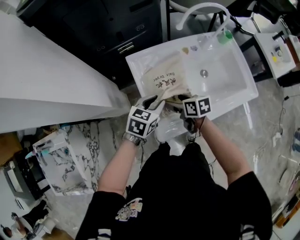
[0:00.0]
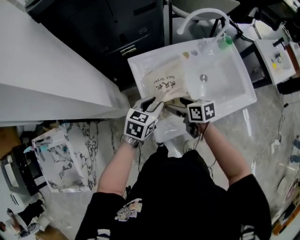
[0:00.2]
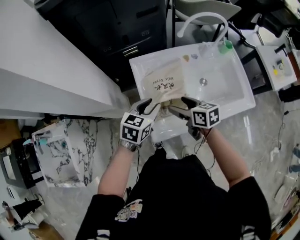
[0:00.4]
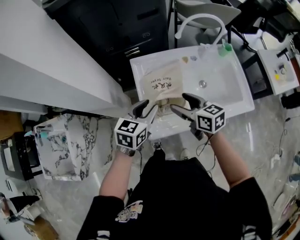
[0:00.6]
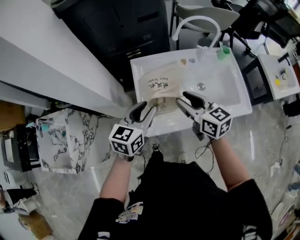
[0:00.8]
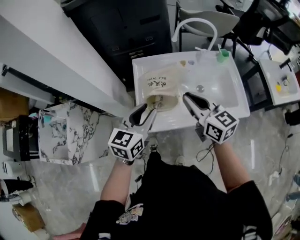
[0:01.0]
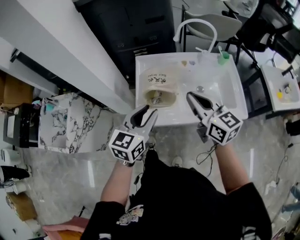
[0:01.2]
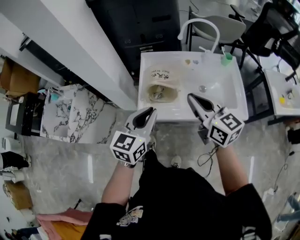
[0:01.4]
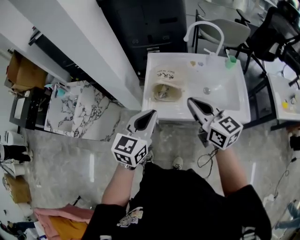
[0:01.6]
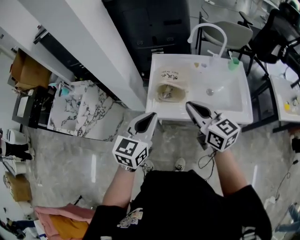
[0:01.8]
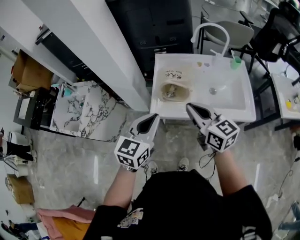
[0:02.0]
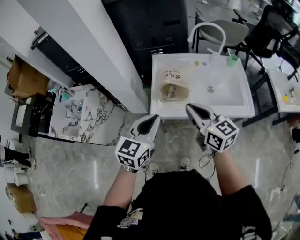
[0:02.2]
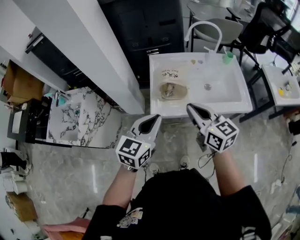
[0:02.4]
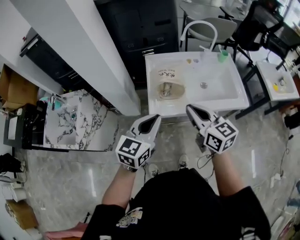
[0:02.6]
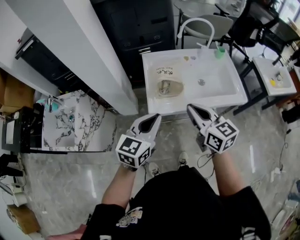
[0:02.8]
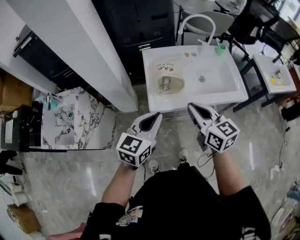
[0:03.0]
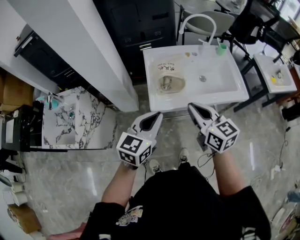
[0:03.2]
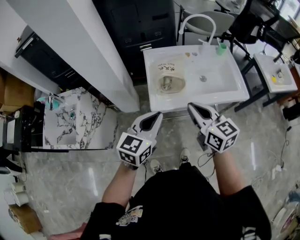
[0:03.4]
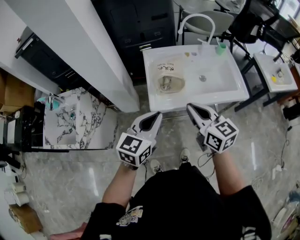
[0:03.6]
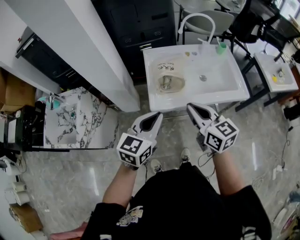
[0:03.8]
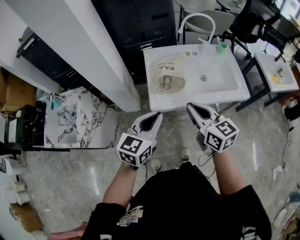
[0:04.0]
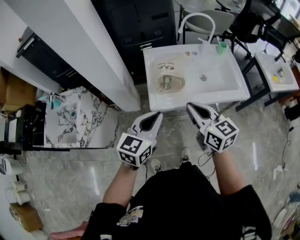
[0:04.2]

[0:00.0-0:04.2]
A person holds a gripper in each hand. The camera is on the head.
0:00.0 to 0:01.4: The right gripper heads upward, backward and to the right, covering roughly 35 cm, angles its fingers upward, by roughly 40 degrees, and closes up, while the left gripper goes about 30 cm backward and upward, and rotates approximately 40 degrees.
0:01.4 to 0:02.8: Both grippers travel together to the left and backward, about 10 cm.
0:02.8 to 0:04.2: There are only small adjustments of the grippers.

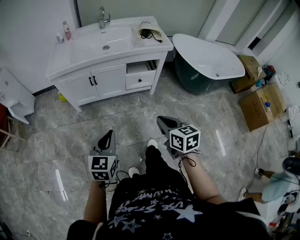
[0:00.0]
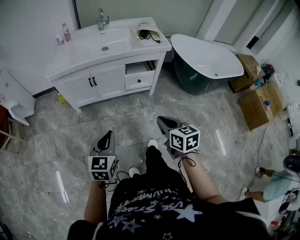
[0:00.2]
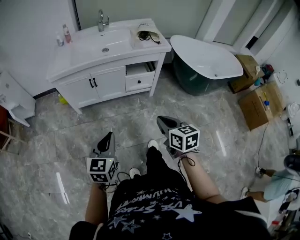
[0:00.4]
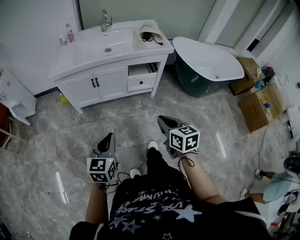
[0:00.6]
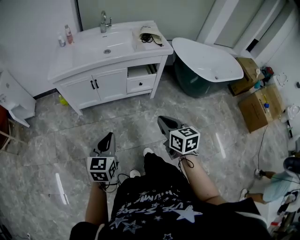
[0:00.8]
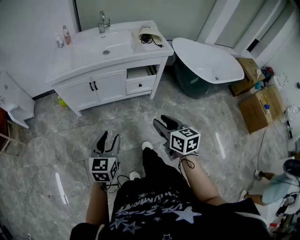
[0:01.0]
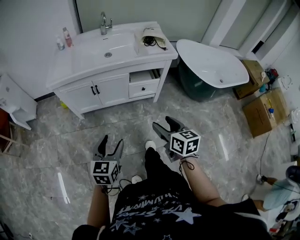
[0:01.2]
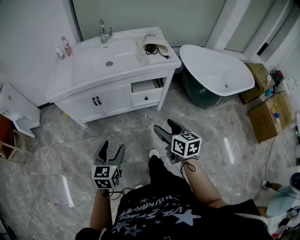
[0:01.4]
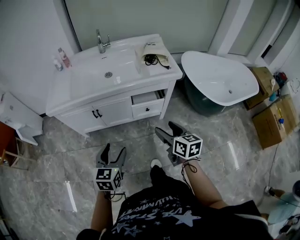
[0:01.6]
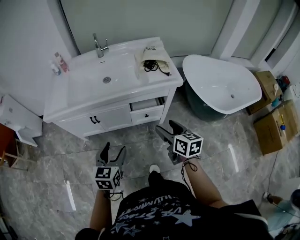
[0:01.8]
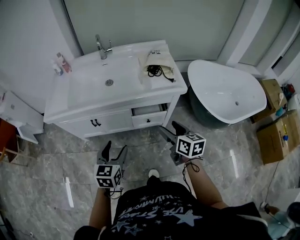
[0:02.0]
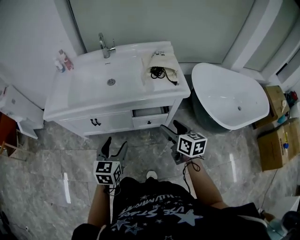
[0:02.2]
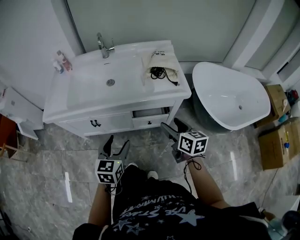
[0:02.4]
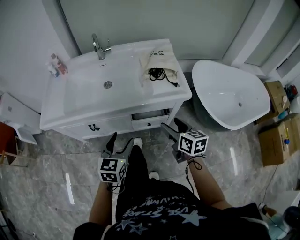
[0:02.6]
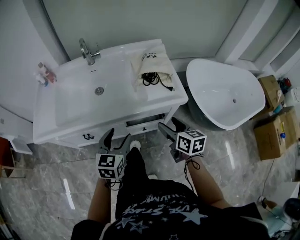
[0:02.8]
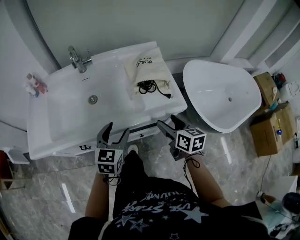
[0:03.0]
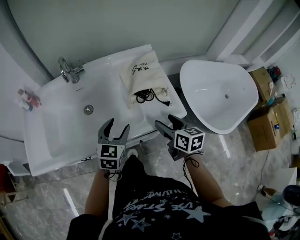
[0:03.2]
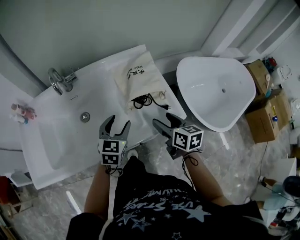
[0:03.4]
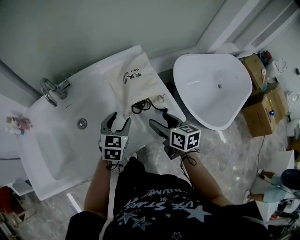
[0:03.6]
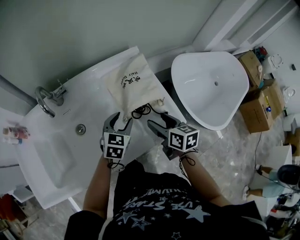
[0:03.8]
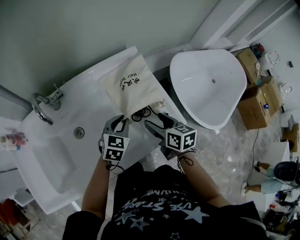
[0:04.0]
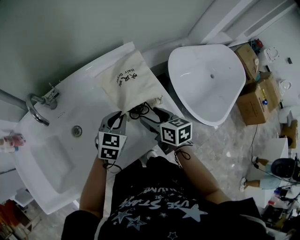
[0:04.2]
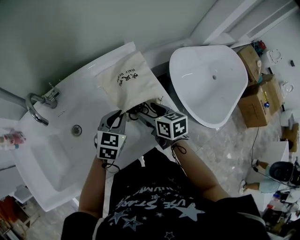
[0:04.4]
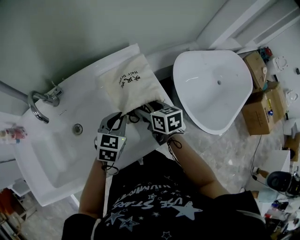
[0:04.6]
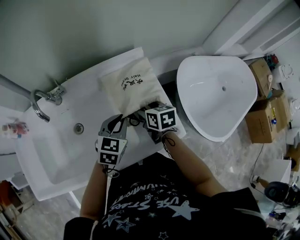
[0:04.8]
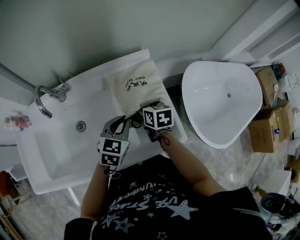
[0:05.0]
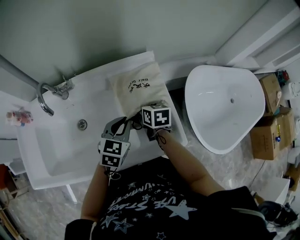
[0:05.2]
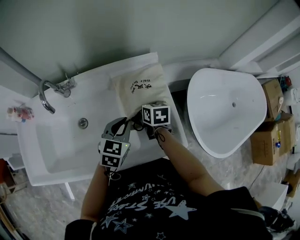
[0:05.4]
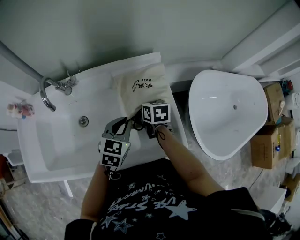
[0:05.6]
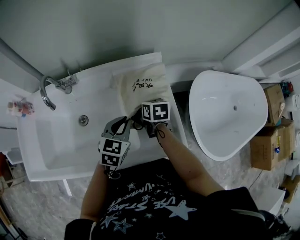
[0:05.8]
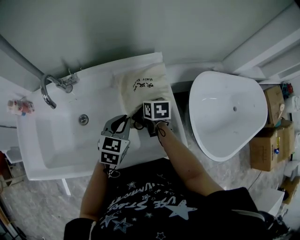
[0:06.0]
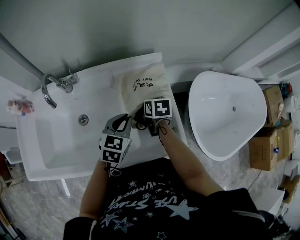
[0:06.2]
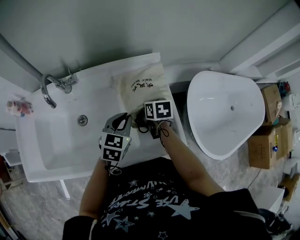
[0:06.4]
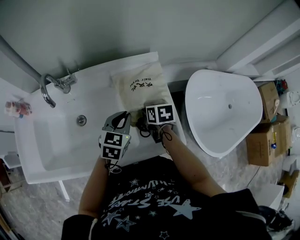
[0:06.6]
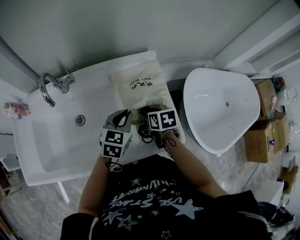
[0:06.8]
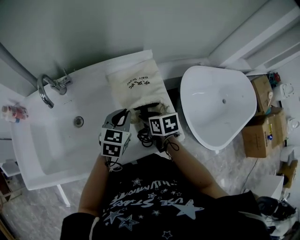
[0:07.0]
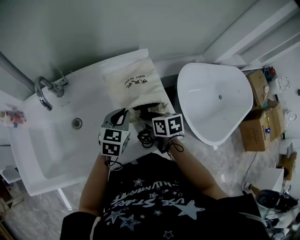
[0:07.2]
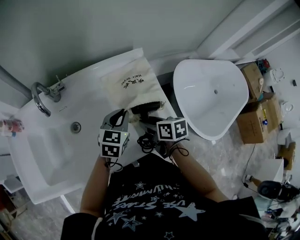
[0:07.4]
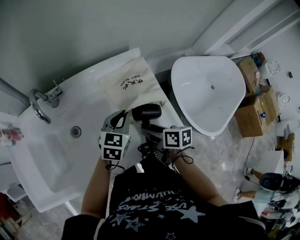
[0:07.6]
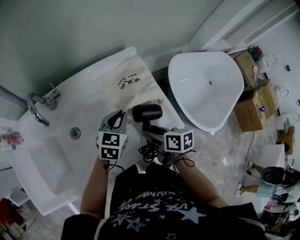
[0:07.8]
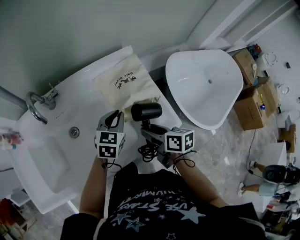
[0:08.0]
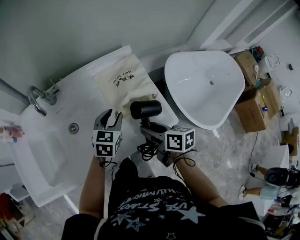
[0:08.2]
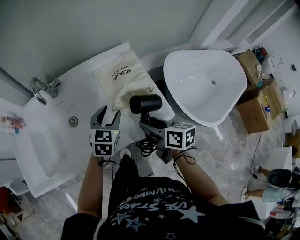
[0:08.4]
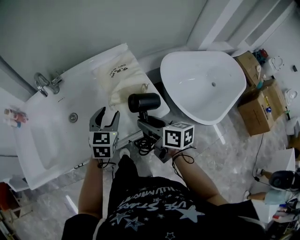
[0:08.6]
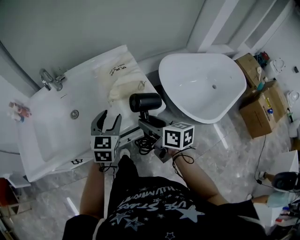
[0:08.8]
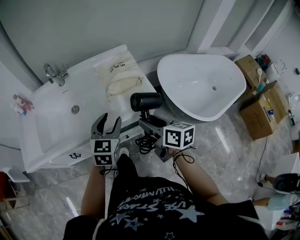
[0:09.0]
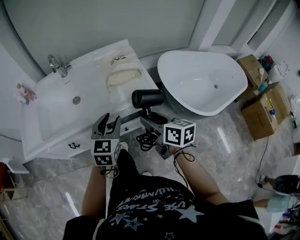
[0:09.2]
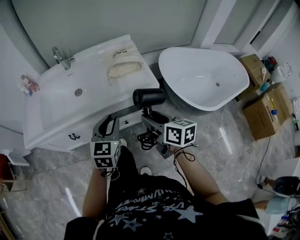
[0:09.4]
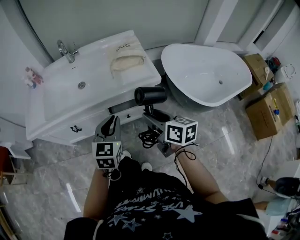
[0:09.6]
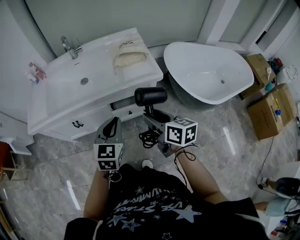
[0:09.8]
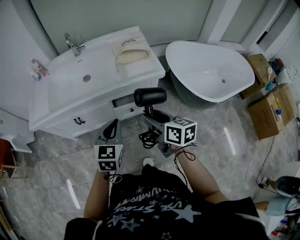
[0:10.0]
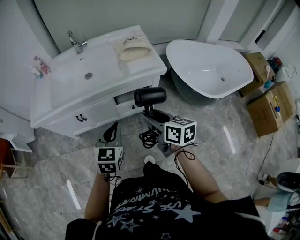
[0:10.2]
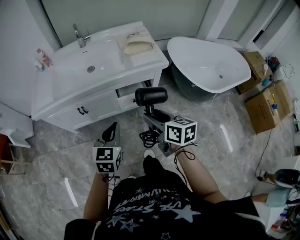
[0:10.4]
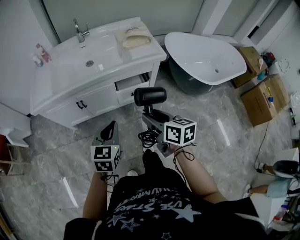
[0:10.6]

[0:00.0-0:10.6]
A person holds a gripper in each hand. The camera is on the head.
0:00.0 to 0:01.6: The grippers both shift forward by about 20 cm. The left gripper opens up. Meanwhile the right gripper opens.
0:01.6 to 0:03.0: Both grippers move forward, approximately 35 cm.
0:03.0 to 0:04.6: Both grippers move forward, approximately 25 cm. The left gripper changes its angle by roughly 20 degrees, and closes up.
0:04.6 to 0:06.0: The right gripper shifts roughly 10 cm forward and downward.
0:06.0 to 0:07.6: The right gripper heads backward, covering roughly 15 cm, and turns by roughly 20 degrees.
0:07.6 to 0:09.0: The right gripper is displaced backward and upward by roughly 20 cm, and swivels roughly 20 degrees; the left gripper heads backward, covering roughly 20 cm, and opens its fingers.
0:09.0 to 0:10.6: The two grippers go approximately 35 cm backward and to the left. The left gripper closes its fingers.

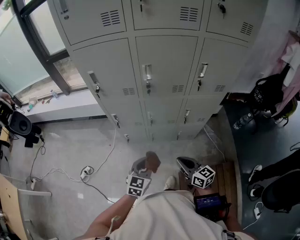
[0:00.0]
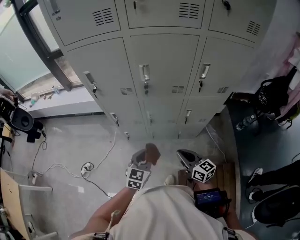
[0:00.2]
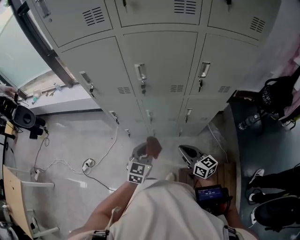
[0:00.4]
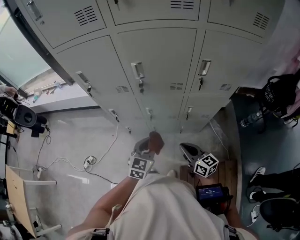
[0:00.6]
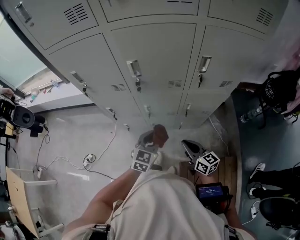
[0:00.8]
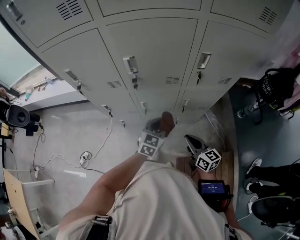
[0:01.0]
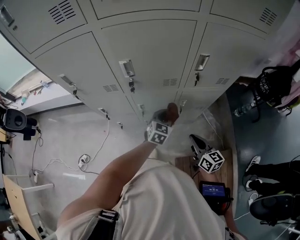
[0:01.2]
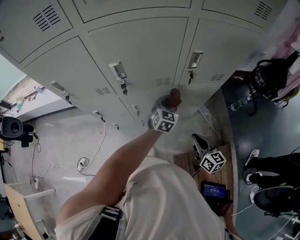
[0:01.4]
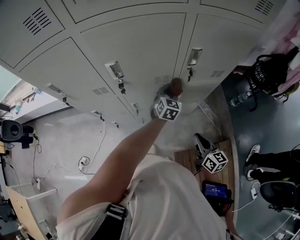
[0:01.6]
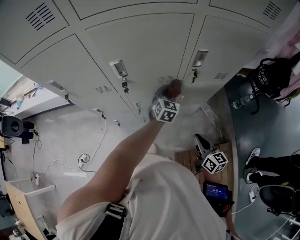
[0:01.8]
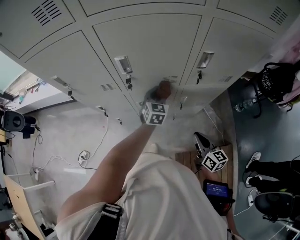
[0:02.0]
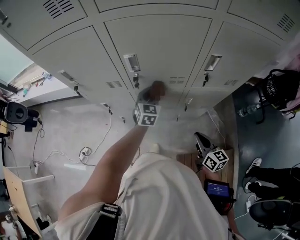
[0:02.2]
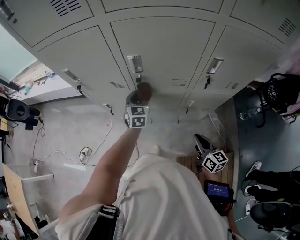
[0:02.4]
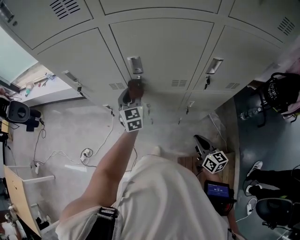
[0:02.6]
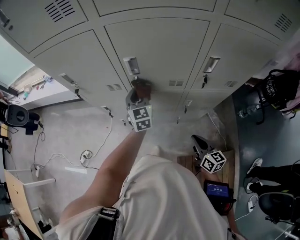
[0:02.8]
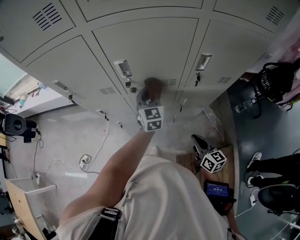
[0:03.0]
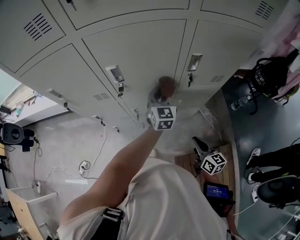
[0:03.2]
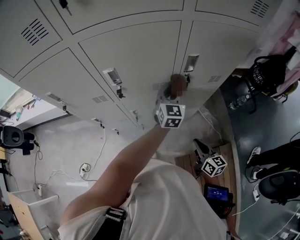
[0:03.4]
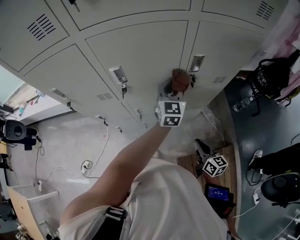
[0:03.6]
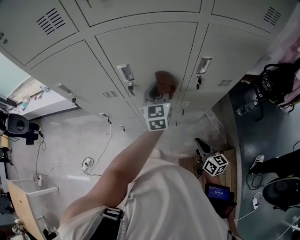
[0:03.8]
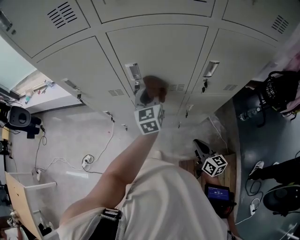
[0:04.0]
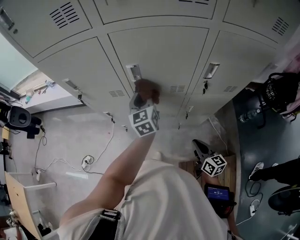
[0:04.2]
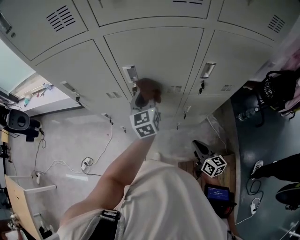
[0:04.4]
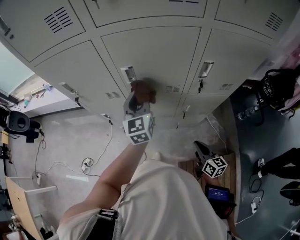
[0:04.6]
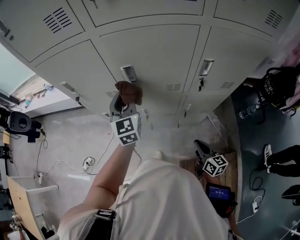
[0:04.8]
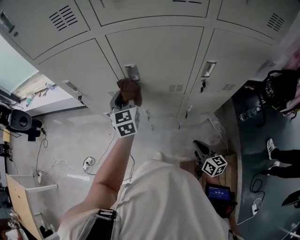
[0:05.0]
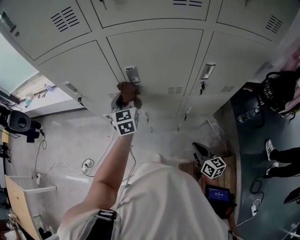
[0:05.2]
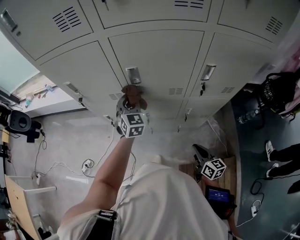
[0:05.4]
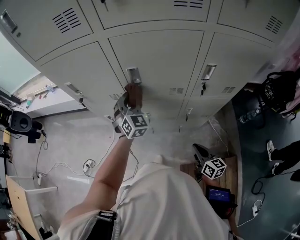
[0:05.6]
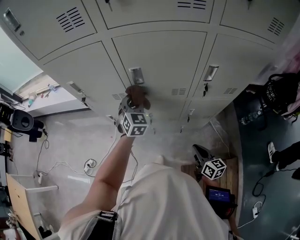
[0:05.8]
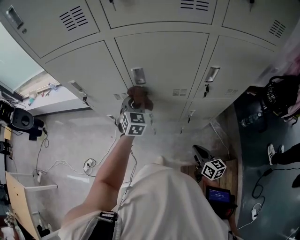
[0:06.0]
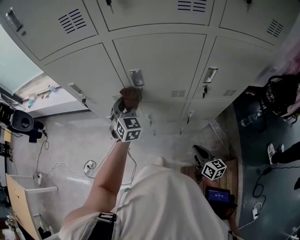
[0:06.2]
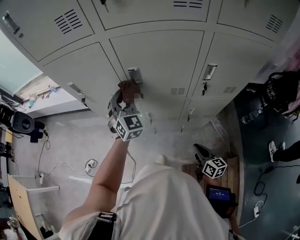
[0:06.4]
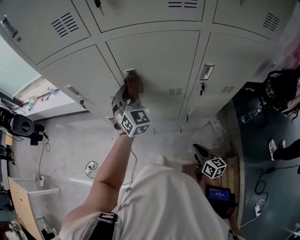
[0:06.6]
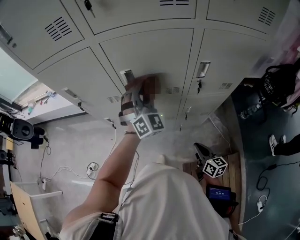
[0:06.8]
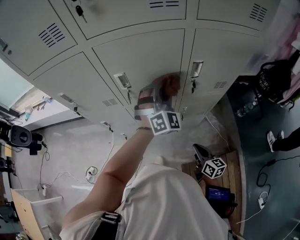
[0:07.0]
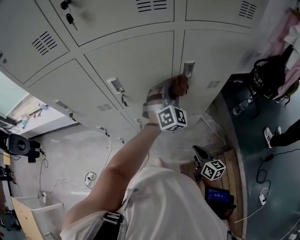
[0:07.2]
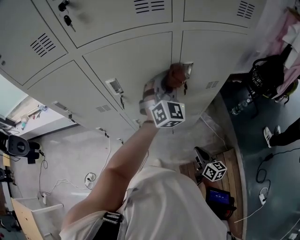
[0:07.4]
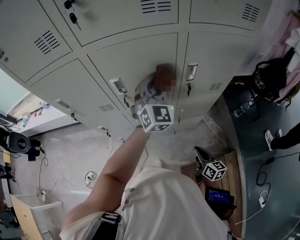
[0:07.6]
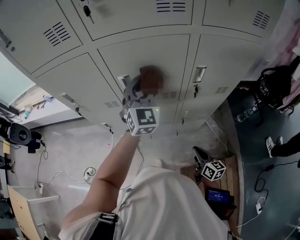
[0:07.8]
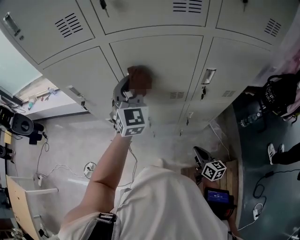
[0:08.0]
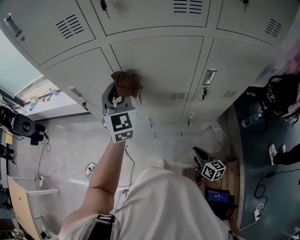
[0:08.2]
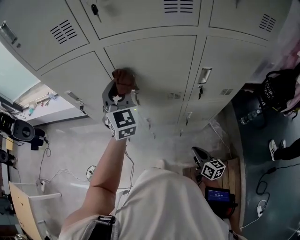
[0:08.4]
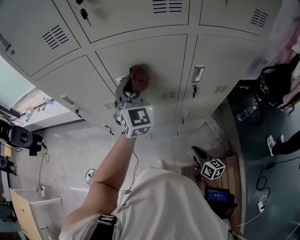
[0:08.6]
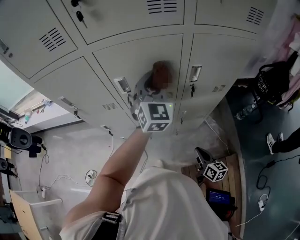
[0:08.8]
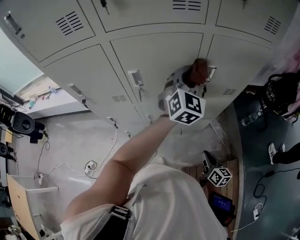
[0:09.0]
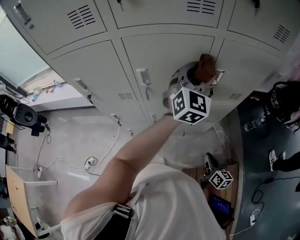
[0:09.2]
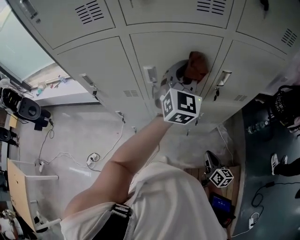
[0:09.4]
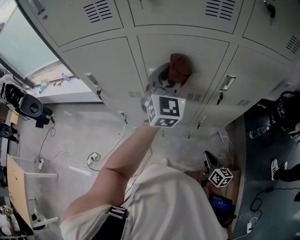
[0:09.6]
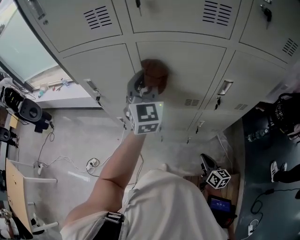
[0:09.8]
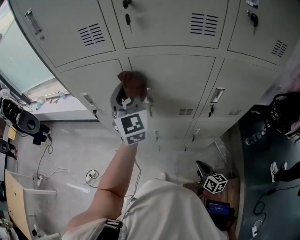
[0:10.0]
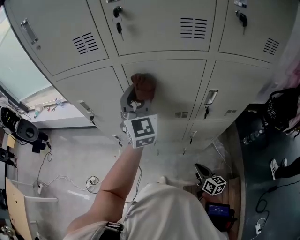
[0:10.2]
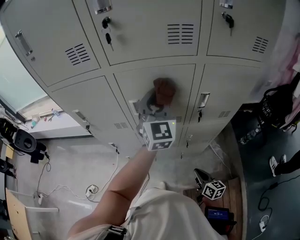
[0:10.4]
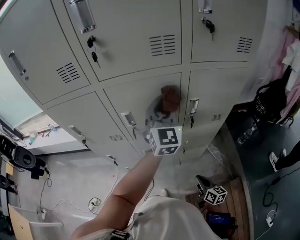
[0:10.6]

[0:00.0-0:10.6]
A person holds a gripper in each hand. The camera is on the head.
0:00.0 to 0:01.6: The left gripper is displaced forward and to the right by roughly 40 cm. The right gripper travels to the right and forward by about 20 cm, and changes its angle by roughly 30 degrees.
0:01.6 to 0:03.0: The left gripper moves to the left and upward, about 15 cm, and changes its angle by about 30 degrees.
0:03.0 to 0:04.6: The left gripper shifts some 10 cm upward, and moves about 15 cm to the right and comes back.
0:04.6 to 0:06.0: The left gripper heads downward, covering approximately 5 cm, and turns by about 30 degrees.
0:06.0 to 0:07.6: The right gripper goes approximately 5 cm to the right. Meanwhile the left gripper moves left and right over roughly 30 cm, changing direction 2 times, and changes its angle by about 30 degrees.
0:07.6 to 0:09.0: The left gripper goes to the left and returns, approximately 20 cm each way.
0:09.0 to 0:10.6: The left gripper is displaced upward by approximately 5 cm, and moves about 30 cm to the left and comes back.
